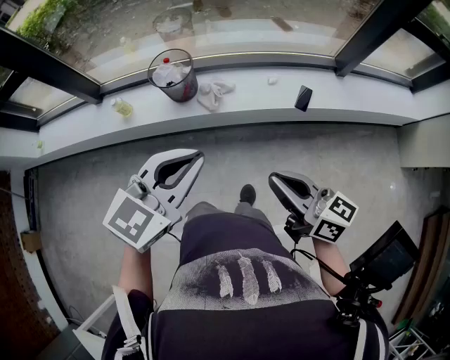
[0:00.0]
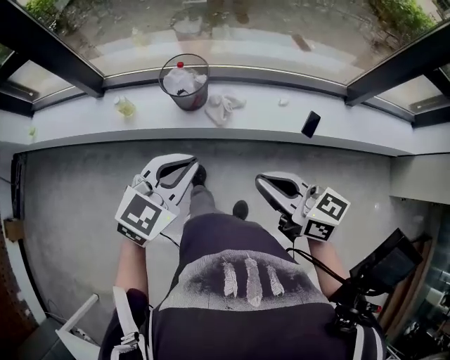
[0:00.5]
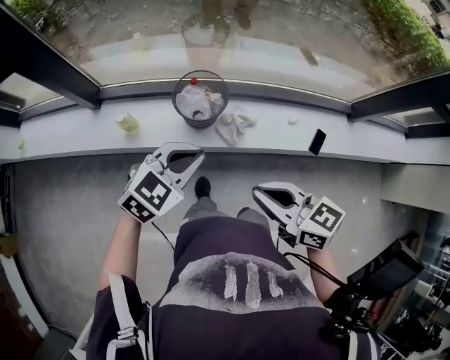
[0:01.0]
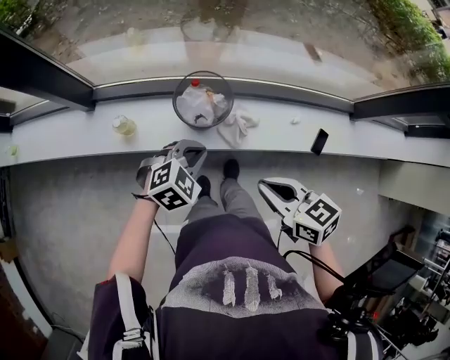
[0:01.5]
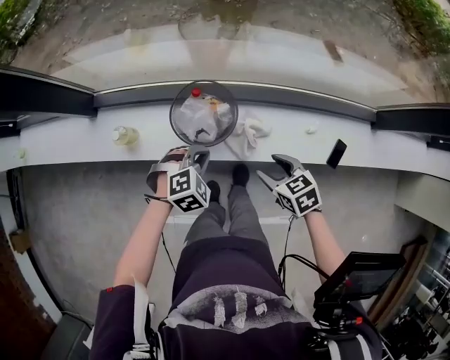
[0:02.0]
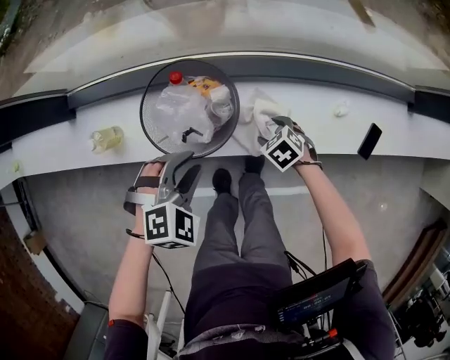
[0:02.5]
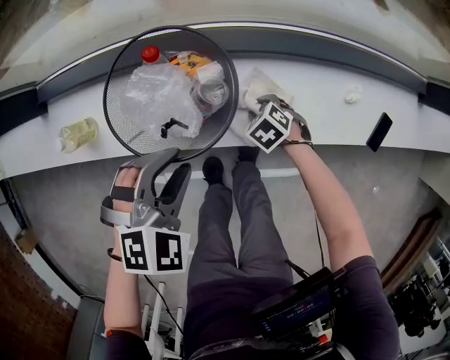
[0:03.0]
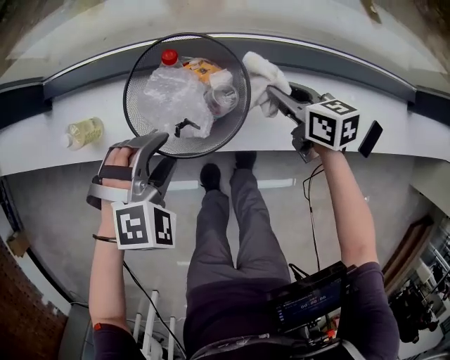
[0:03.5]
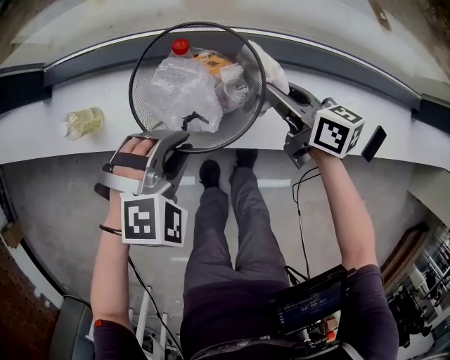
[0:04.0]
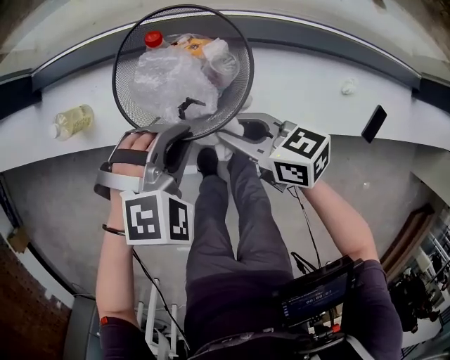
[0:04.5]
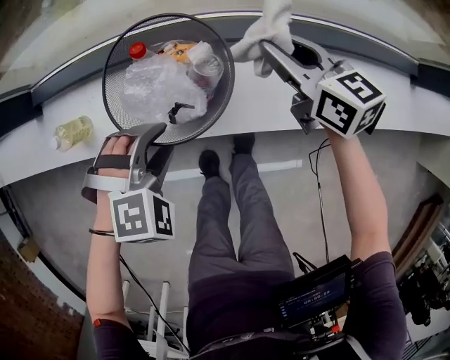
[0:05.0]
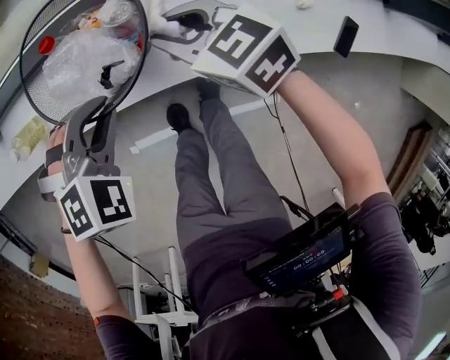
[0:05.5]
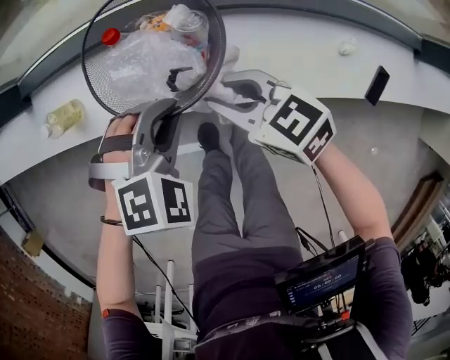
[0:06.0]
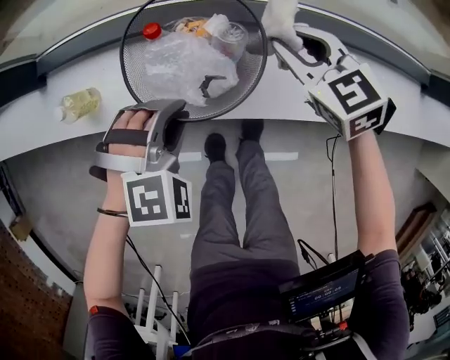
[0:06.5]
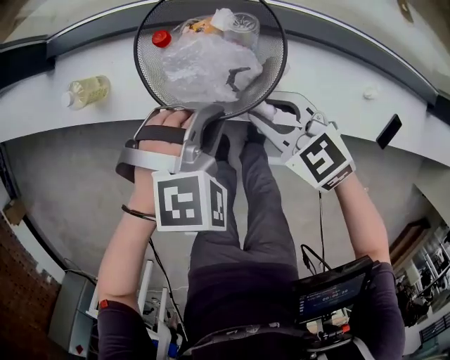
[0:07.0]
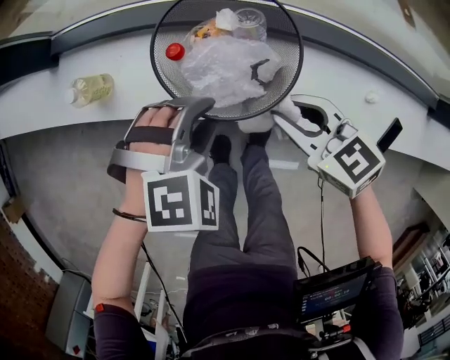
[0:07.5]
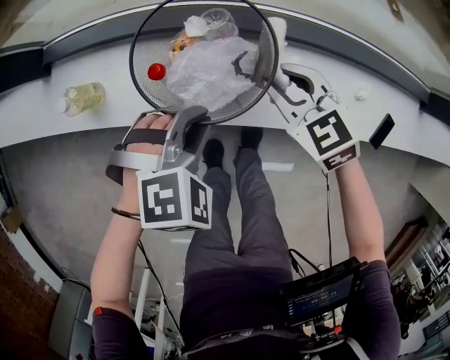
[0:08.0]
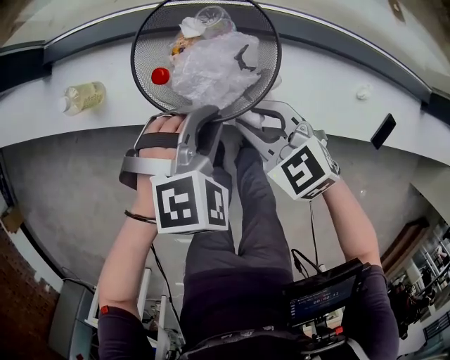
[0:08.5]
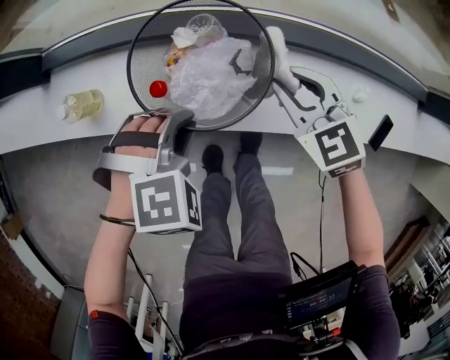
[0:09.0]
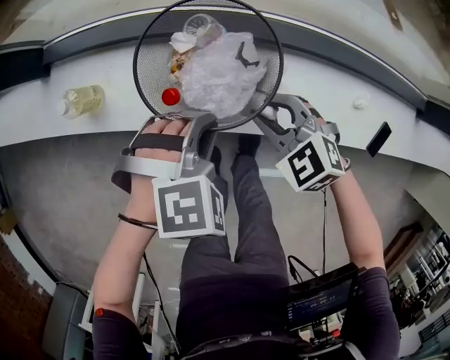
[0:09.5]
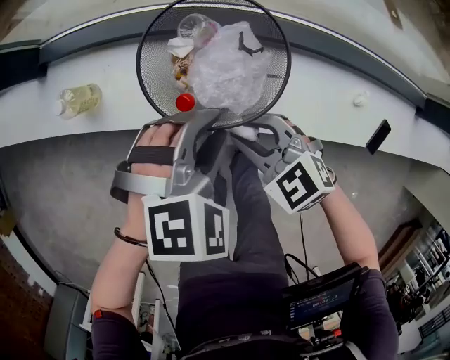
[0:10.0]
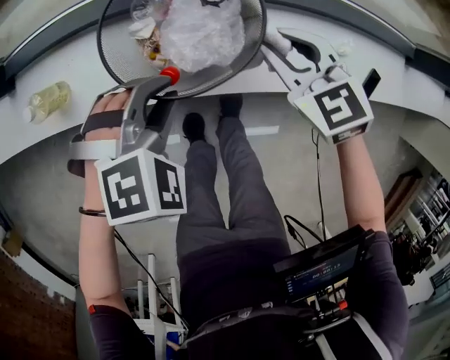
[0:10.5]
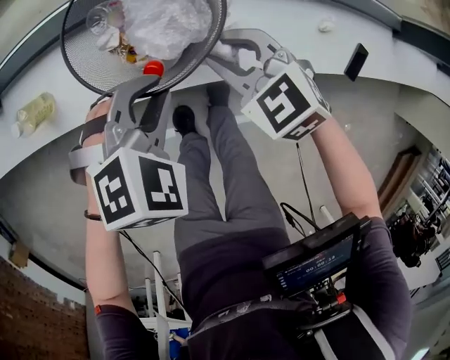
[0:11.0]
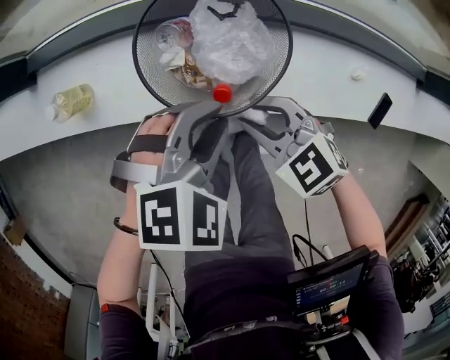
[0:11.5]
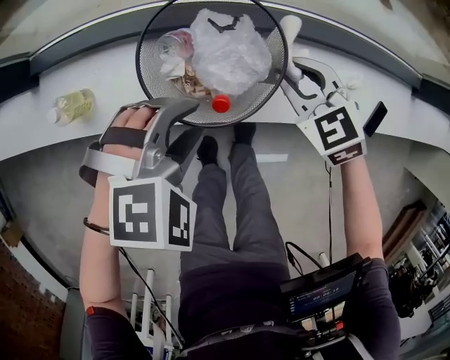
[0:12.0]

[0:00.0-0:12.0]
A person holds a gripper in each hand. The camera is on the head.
0:00.0 to 0:02.0: The left gripper heads downward, forward and to the left, covering approximately 50 cm, and tips its fingers downward by about 40 degrees. Meanwhile the right gripper shifts approximately 40 cm forward and downward, points its fingers approximately 50 degrees further downward, and opens.
0:02.0 to 0:04.0: The right gripper rotates approximately 40 degrees, and closes, while the left gripper heads downward, covering some 10 cm, and opens up.
0:04.0 to 0:06.0: The right gripper goes left and right, approximately 15 cm each way, reversing 2 times, and swivels some 30 degrees. Meanwhile the left gripper opens, then closes again.
0:06.0 to 0:08.0: The right gripper swings forward and backward, approximately 10 cm each way, with 2 reversals, and swivels about 30 degrees.
0:08.0 to 0:10.0: The right gripper moves forward and backward over some 10 cm, changing direction 2 times.
0:10.0 to 0:12.0: The right gripper swings forward and backward, roughly 10 cm each way, with 2 reversals, and turns by roughly 20 degrees.

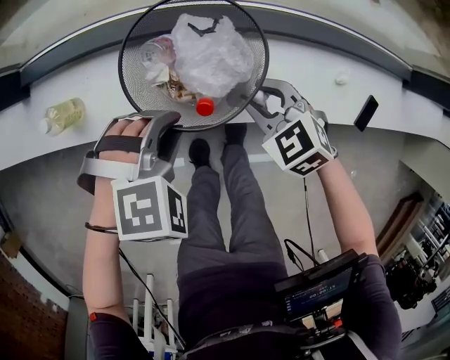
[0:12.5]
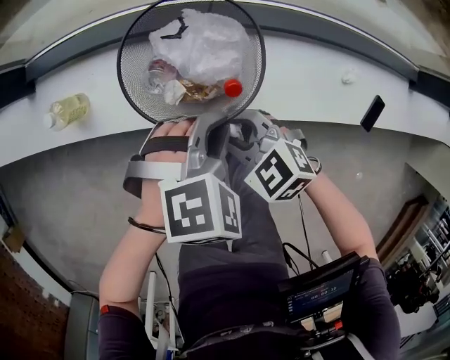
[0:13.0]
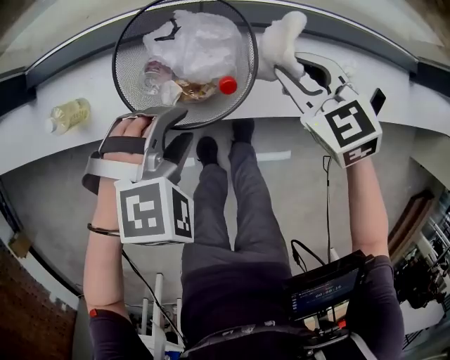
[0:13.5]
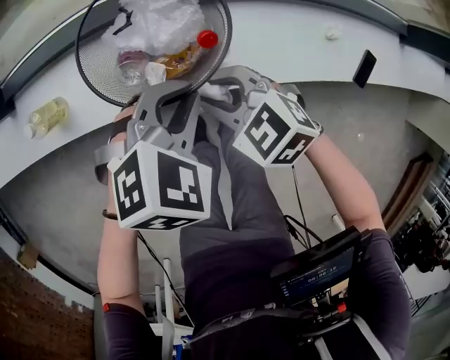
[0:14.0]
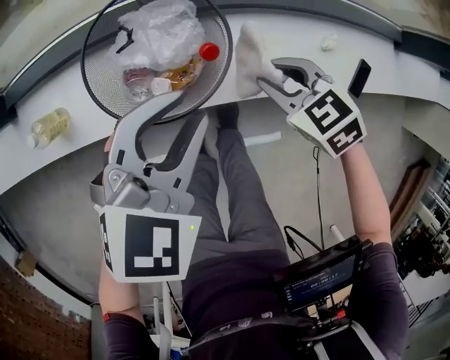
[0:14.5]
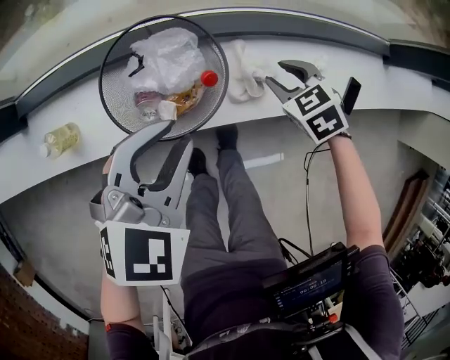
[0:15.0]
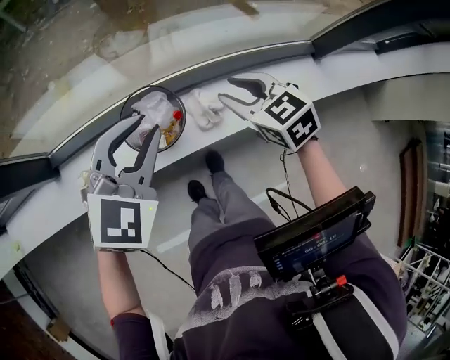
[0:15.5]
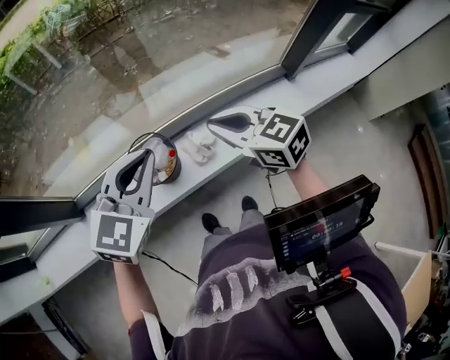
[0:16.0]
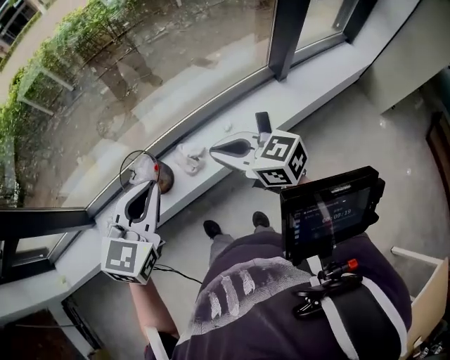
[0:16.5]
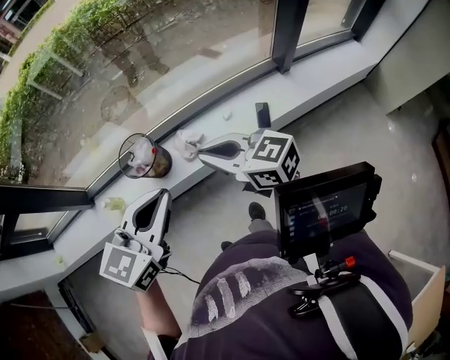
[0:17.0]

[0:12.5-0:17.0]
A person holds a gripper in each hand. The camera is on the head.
0:12.5 to 0:14.5: The left gripper goes some 10 cm upward and to the right, swivels about 40 degrees, and opens, then closes once more. Meanwhile the right gripper swings left and right, roughly 15 cm each way, with 3 reversals.
0:14.5 to 0:17.0: The left gripper travels upward, backward and to the right by roughly 50 cm, swivels approximately 20 degrees, and closes. Meanwhile the right gripper moves upward and backward, approximately 50 cm, points its fingers approximately 50 degrees further upward, and closes.

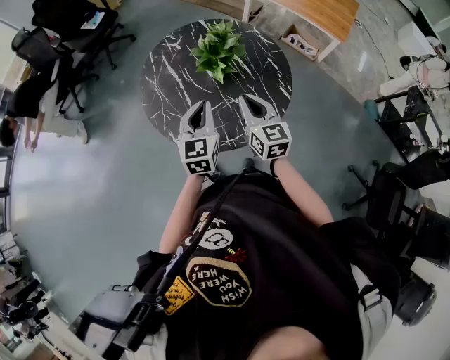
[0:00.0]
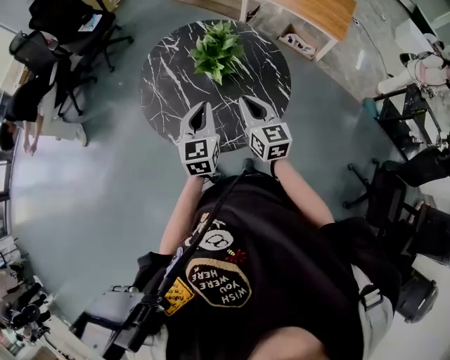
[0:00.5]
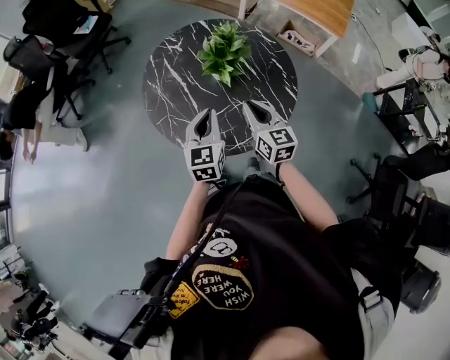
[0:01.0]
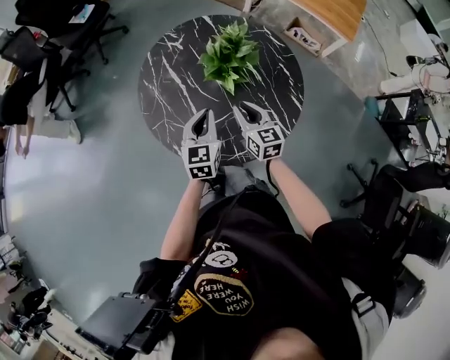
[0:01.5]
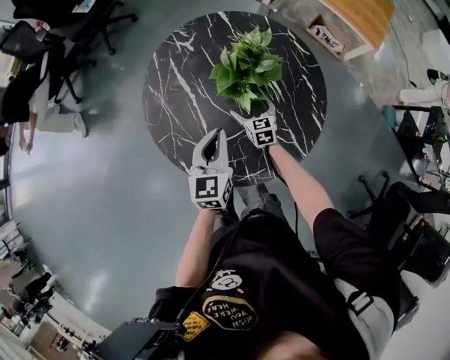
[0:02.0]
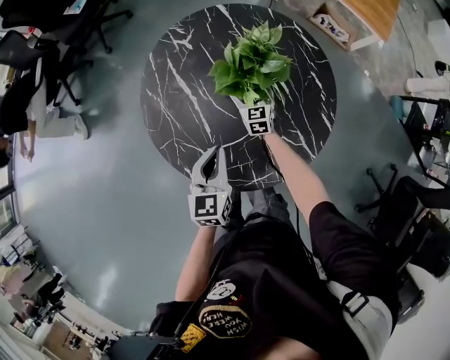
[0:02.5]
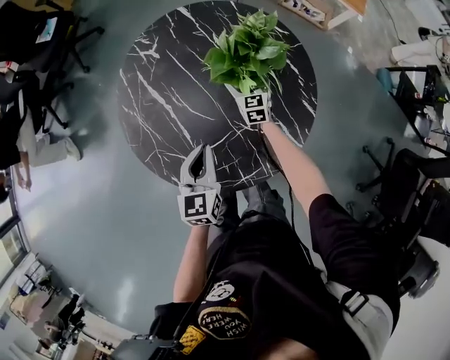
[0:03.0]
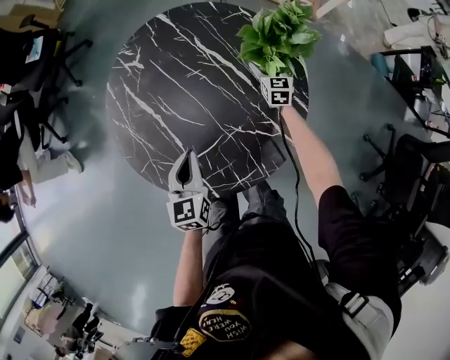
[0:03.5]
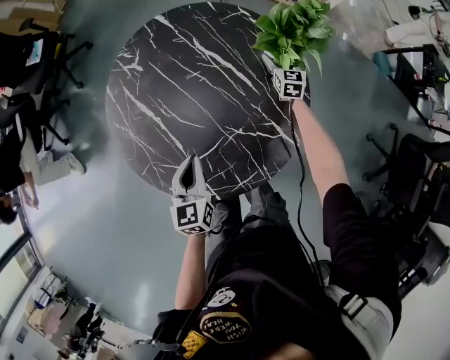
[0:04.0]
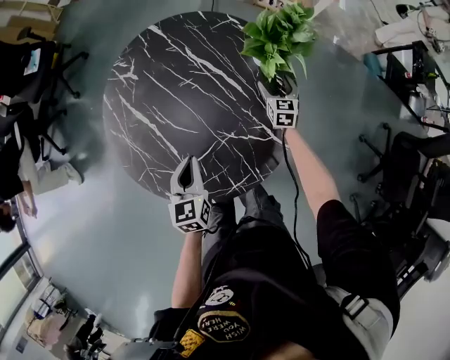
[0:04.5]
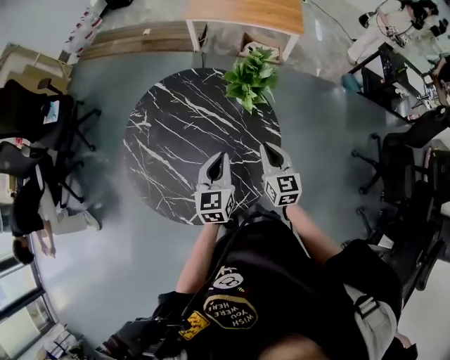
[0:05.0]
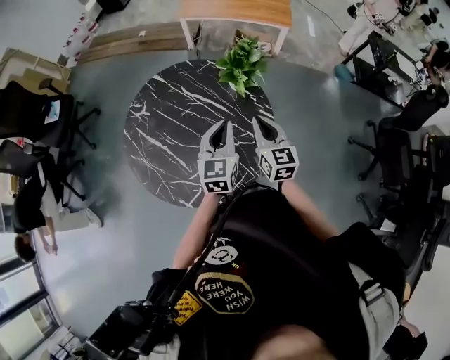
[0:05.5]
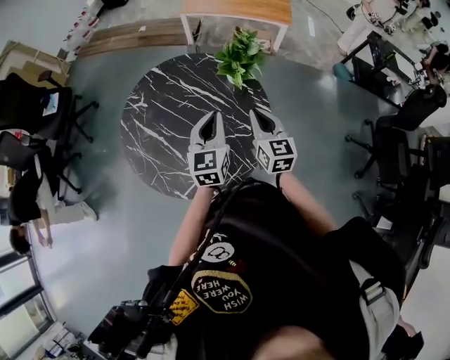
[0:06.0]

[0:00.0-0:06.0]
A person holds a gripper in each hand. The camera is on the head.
0:00.0 to 0:02.0: The left gripper travels forward and downward by roughly 15 cm. The right gripper heads downward and forward, covering approximately 40 cm, swivels some 20 degrees, and opens its fingers.
0:02.0 to 0:04.0: The right gripper is displaced to the right and forward by roughly 30 cm, and changes its angle by some 30 degrees; the left gripper shifts approximately 10 cm downward.
0:04.0 to 0:06.0: The right gripper heads upward and backward, covering roughly 50 cm, and closes up. Meanwhile the left gripper goes approximately 25 cm upward and to the right, and swivels roughly 30 degrees.

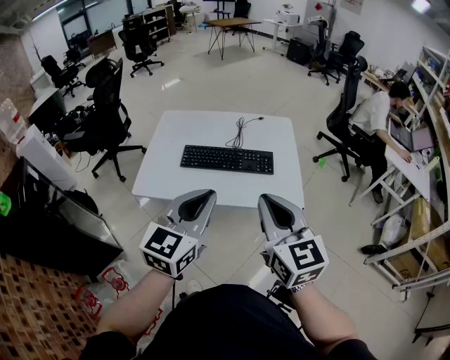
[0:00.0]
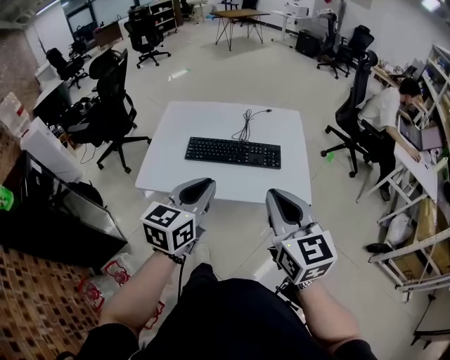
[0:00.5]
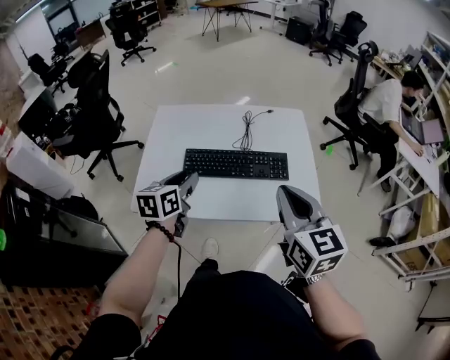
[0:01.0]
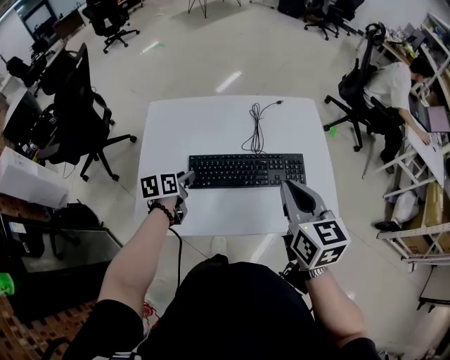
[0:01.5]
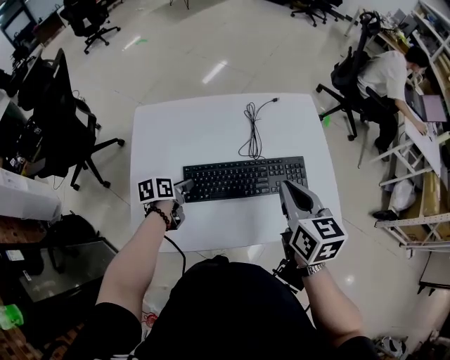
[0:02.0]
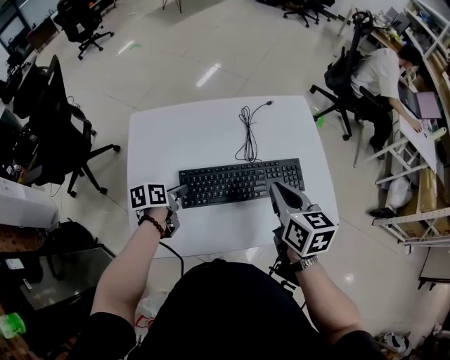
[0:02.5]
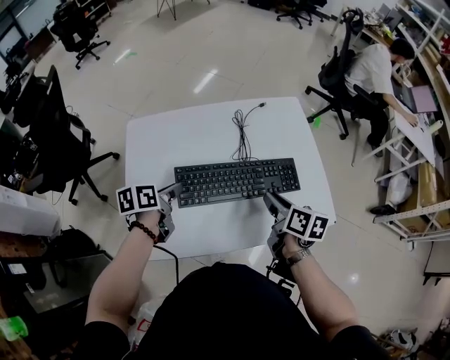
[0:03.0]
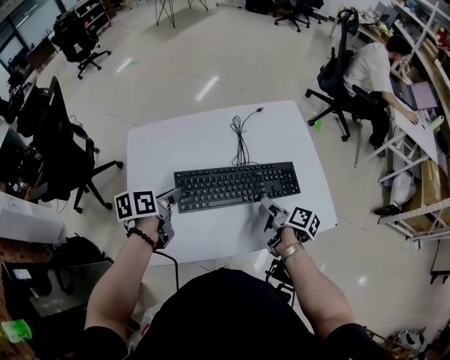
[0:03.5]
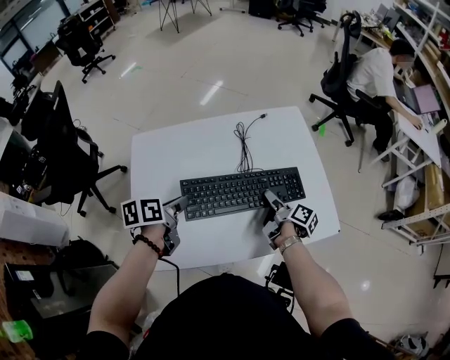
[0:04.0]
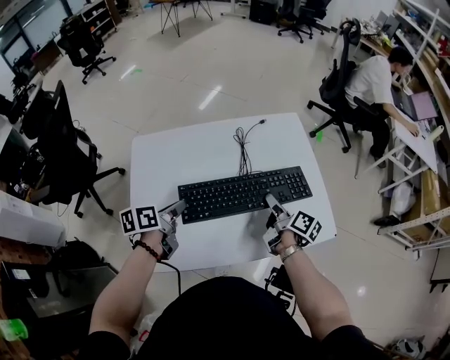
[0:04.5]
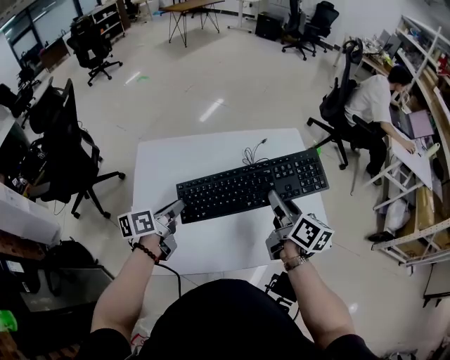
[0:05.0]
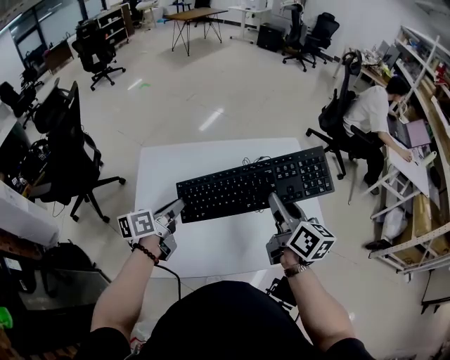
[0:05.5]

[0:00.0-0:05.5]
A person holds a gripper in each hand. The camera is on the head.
0:00.0 to 0:02.0: The left gripper is displaced downward, forward and to the left by roughly 50 cm, tips its fingers downward by about 40 degrees, and opens up, while the right gripper moves forward and downward, approximately 30 cm, and swivels about 30 degrees.
0:02.0 to 0:03.5: The left gripper shifts some 10 cm upward. The right gripper heads downward, covering about 20 cm, twists some 60 degrees clockwise, seen from behind, and opens.
0:03.5 to 0:05.5: The left gripper shifts by roughly 5 cm, and swivels about 20 degrees; the right gripper goes roughly 25 cm upward, rolls counterclockwise, seen from behind, by some 40 degrees, and closes.
